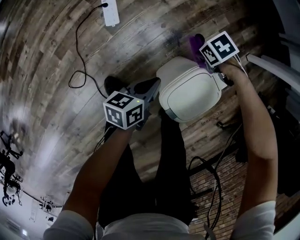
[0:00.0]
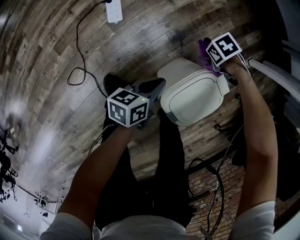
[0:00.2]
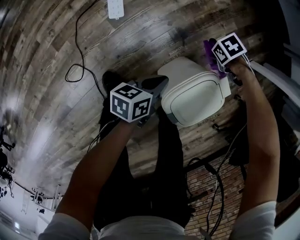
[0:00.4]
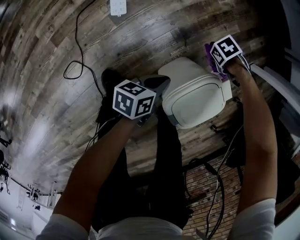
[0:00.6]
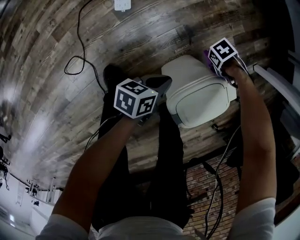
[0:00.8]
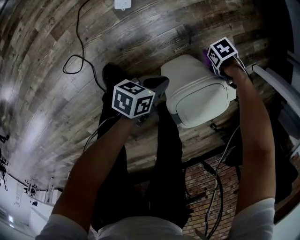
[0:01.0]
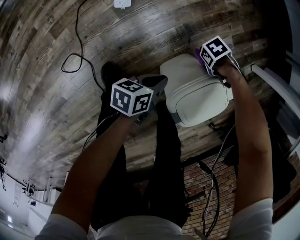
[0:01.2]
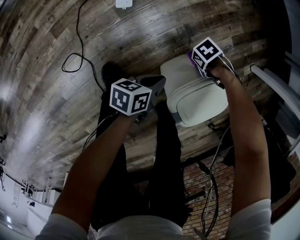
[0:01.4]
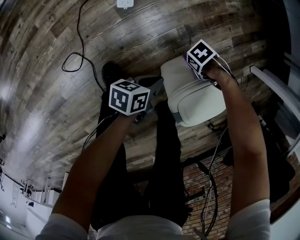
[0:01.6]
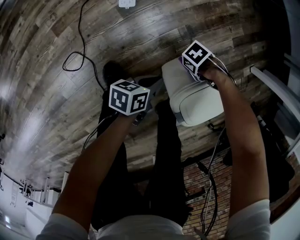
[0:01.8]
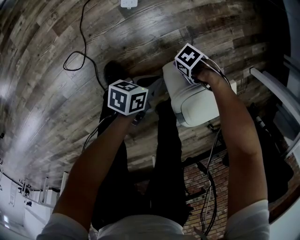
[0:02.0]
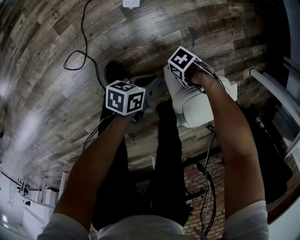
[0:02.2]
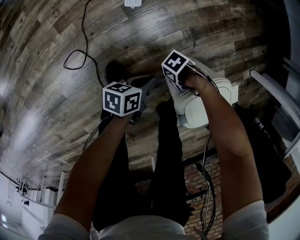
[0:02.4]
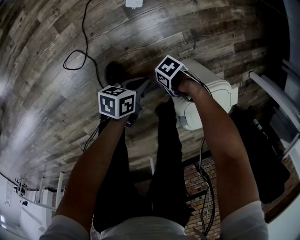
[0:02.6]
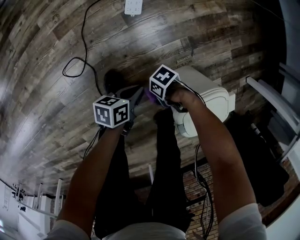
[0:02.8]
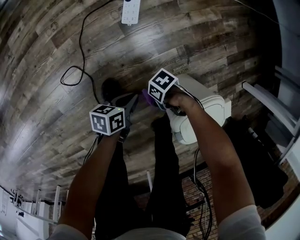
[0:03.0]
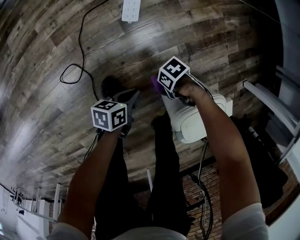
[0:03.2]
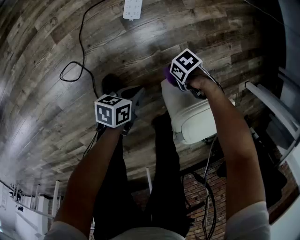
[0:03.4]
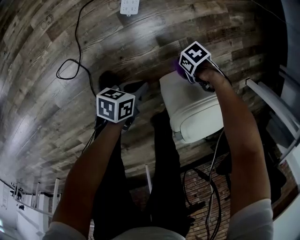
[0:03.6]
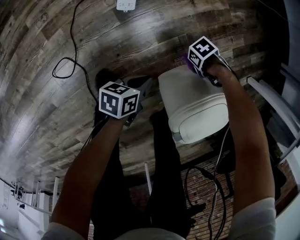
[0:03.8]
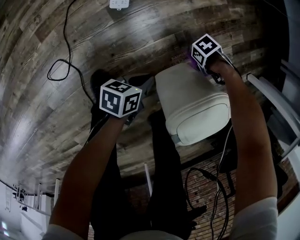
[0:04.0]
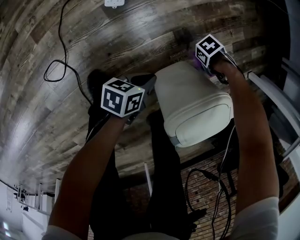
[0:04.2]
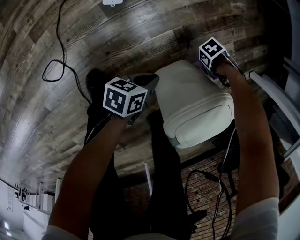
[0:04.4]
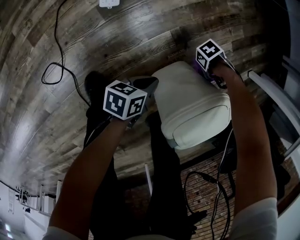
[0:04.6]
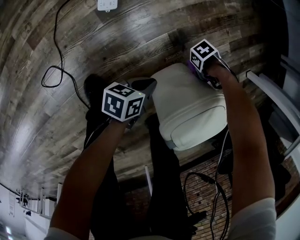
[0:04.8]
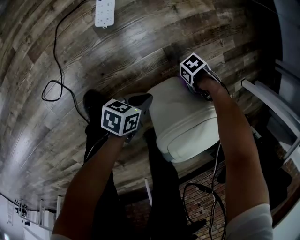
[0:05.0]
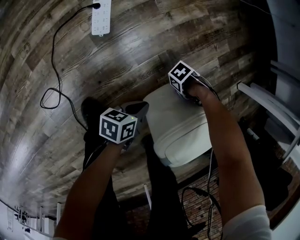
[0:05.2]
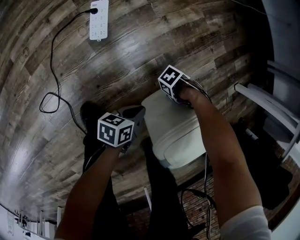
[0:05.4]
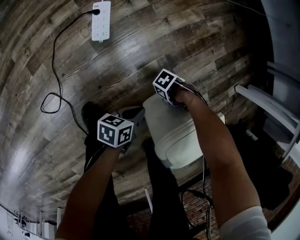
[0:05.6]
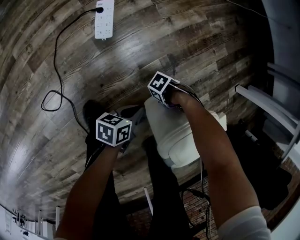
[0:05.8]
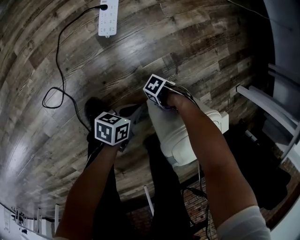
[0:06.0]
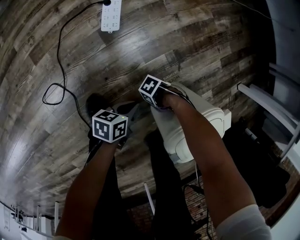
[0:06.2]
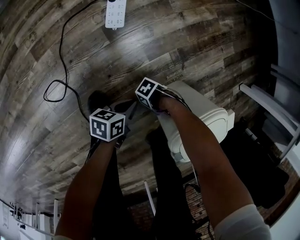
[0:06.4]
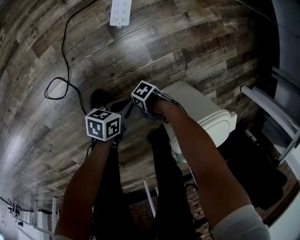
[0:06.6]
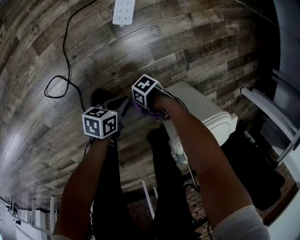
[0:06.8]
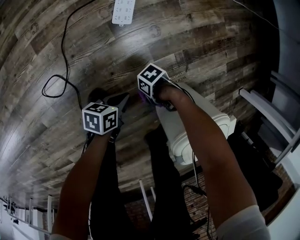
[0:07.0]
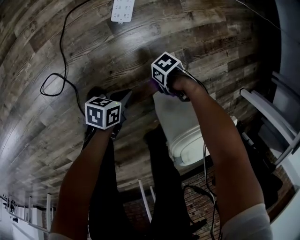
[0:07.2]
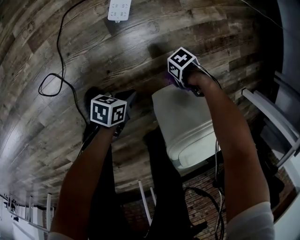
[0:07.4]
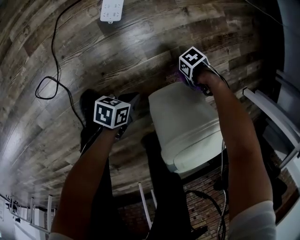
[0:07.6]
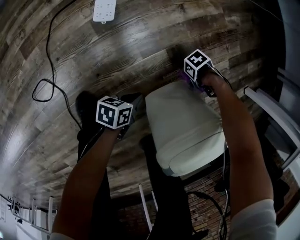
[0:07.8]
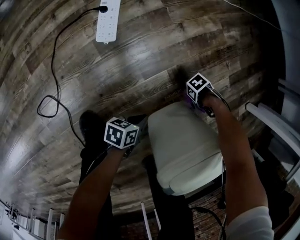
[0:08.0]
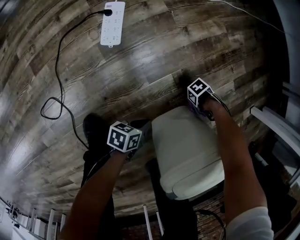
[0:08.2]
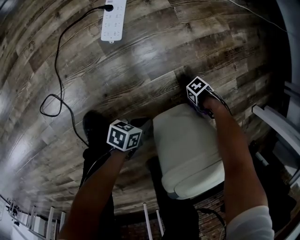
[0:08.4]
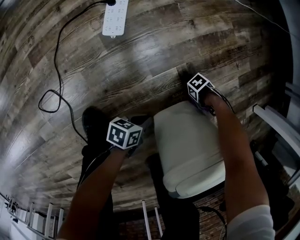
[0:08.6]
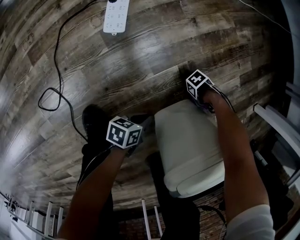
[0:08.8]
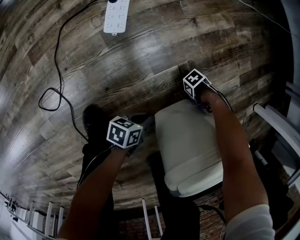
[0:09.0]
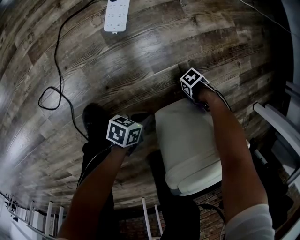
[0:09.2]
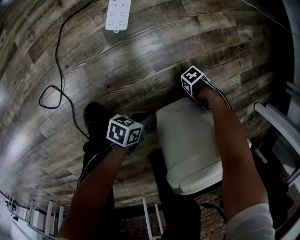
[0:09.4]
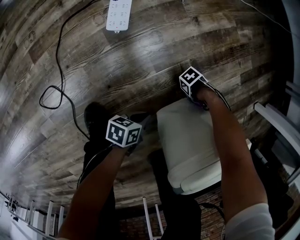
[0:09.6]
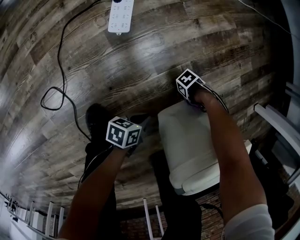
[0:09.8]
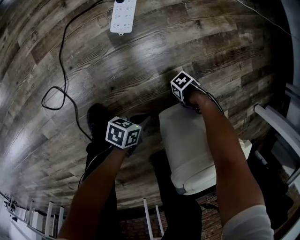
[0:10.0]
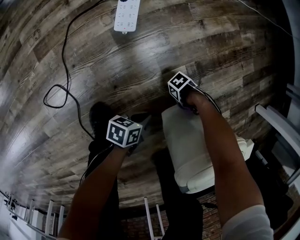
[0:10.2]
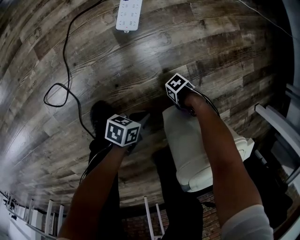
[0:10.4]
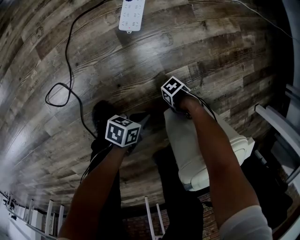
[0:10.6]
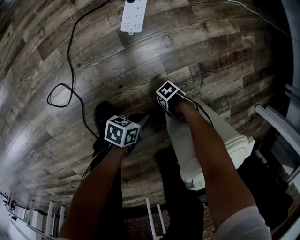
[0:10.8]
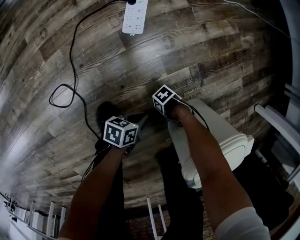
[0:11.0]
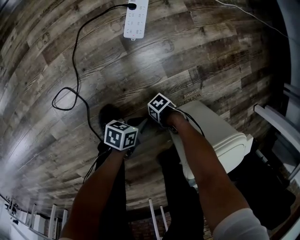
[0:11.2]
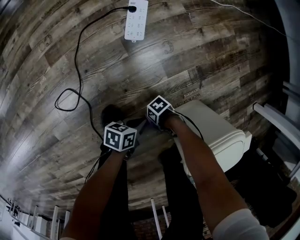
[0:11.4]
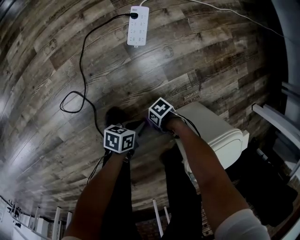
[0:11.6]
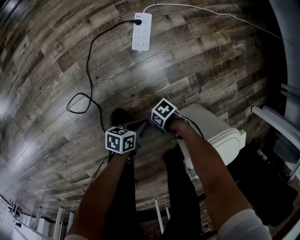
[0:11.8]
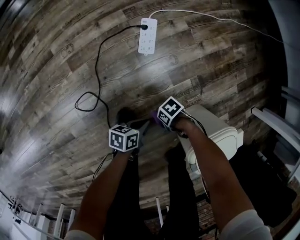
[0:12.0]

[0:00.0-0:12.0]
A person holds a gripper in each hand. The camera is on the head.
0:00.0 to 0:01.6: The left gripper goes some 10 cm downward.
0:01.6 to 0:03.0: The left gripper changes place by about 10 cm.
0:03.0 to 0:04.4: The left gripper ends up about 15 cm from where it was.
0:06.0 to 0:07.6: The left gripper shifts about 10 cm downward.
0:07.6 to 0:09.0: The left gripper changes place by roughly 5 cm.
0:09.0 to 0:10.4: The left gripper changes place by about 5 cm.
0:10.4 to 0:12.0: The left gripper shifts approximately 10 cm upward.

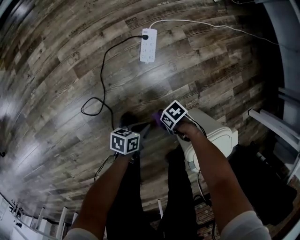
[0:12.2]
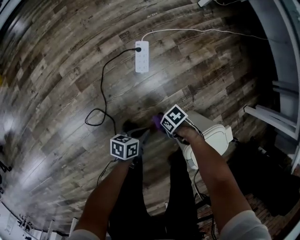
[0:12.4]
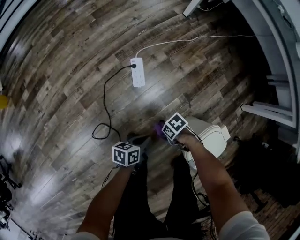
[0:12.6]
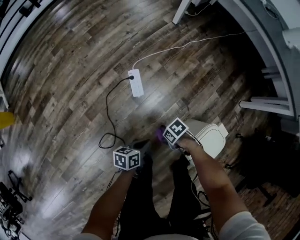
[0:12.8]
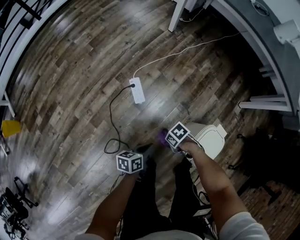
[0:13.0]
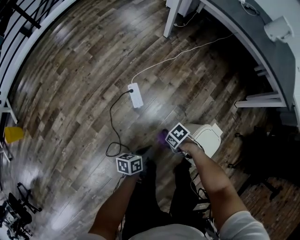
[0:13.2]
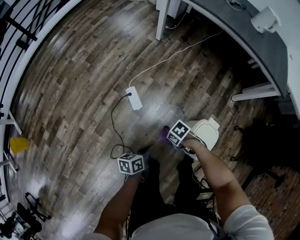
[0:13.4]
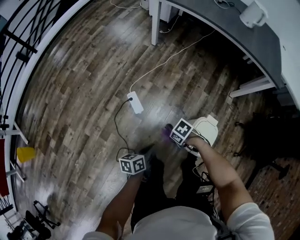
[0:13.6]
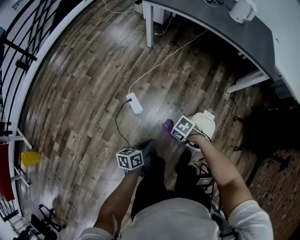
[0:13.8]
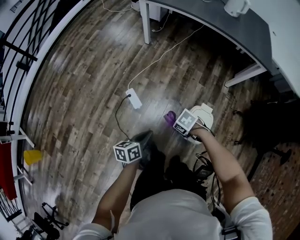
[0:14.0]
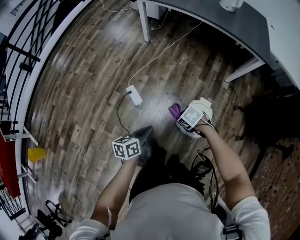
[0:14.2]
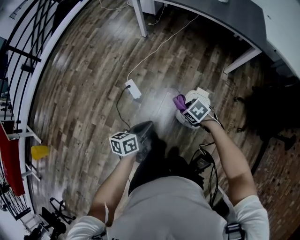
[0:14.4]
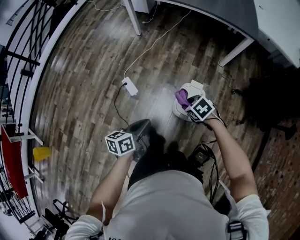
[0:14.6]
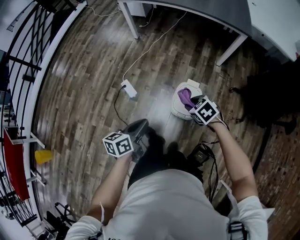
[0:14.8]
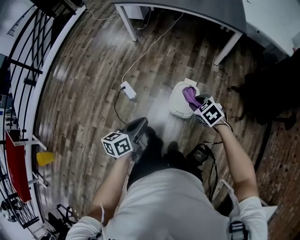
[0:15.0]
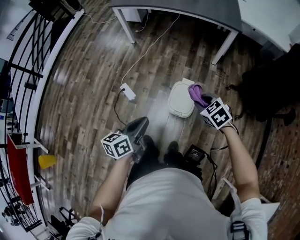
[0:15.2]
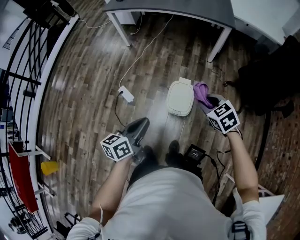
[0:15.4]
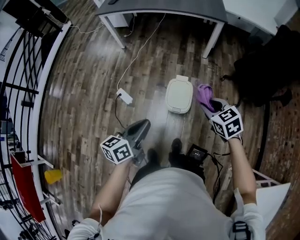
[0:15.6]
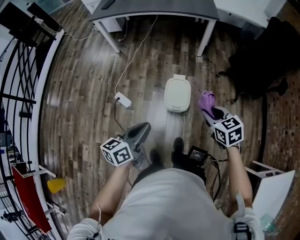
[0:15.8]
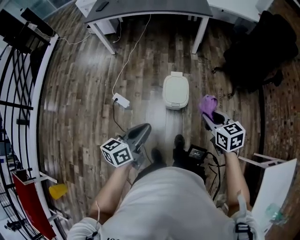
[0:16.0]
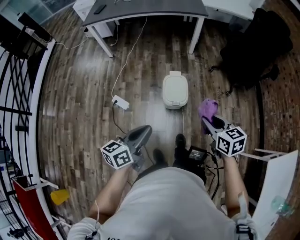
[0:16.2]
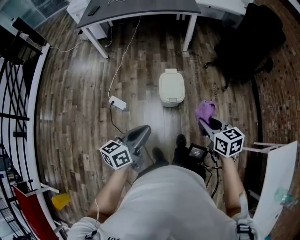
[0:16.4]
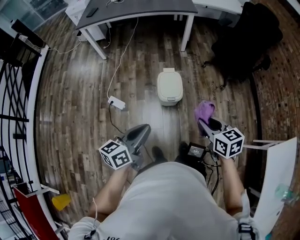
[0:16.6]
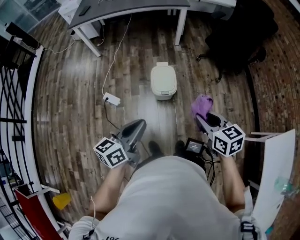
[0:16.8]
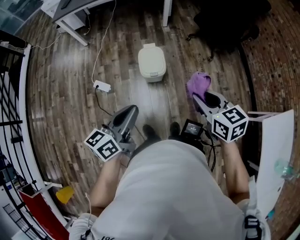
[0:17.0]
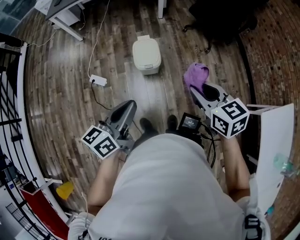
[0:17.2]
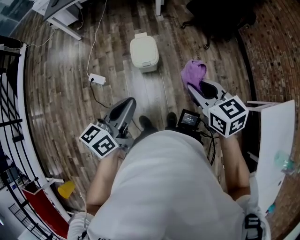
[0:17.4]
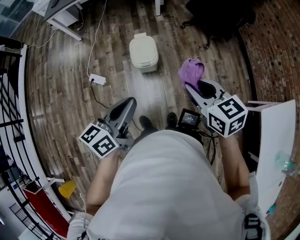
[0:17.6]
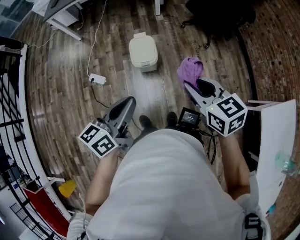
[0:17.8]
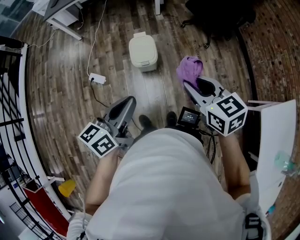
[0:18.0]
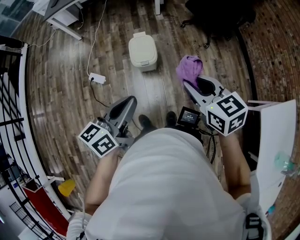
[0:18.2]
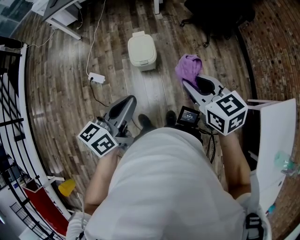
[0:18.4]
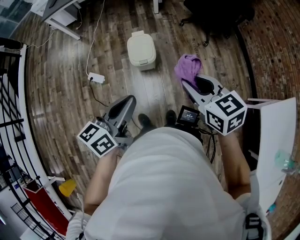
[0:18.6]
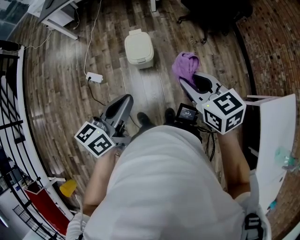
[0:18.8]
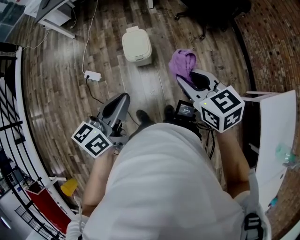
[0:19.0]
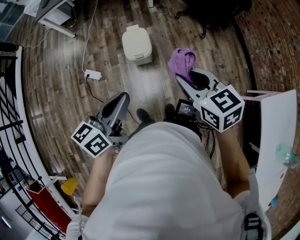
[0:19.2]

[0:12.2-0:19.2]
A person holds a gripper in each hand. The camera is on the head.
0:12.2 to 0:13.6: The left gripper is displaced upward by roughly 35 cm.
0:13.6 to 0:15.0: The left gripper is displaced upward by some 20 cm, and rotates roughly 20 degrees.
0:15.0 to 0:16.4: The left gripper moves approximately 15 cm, and rotates some 30 degrees.
0:16.4 to 0:17.8: The left gripper moves some 15 cm.

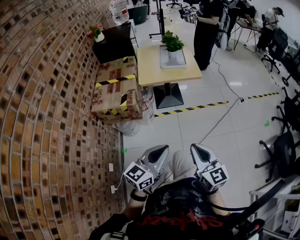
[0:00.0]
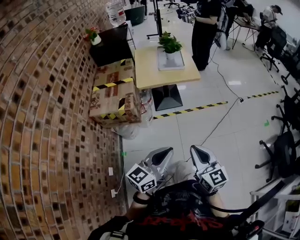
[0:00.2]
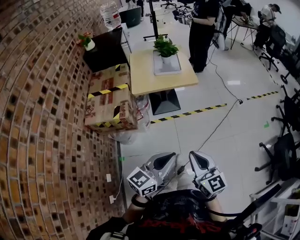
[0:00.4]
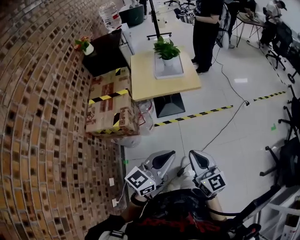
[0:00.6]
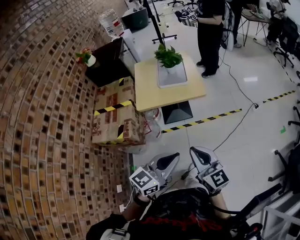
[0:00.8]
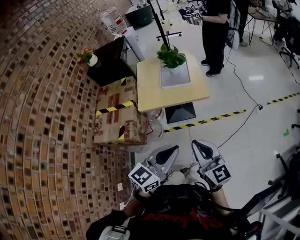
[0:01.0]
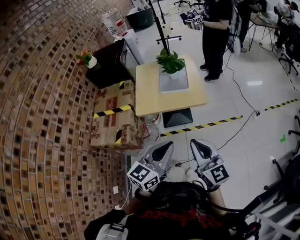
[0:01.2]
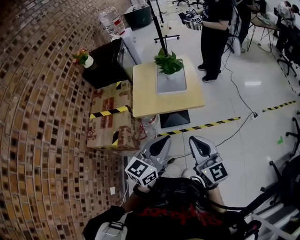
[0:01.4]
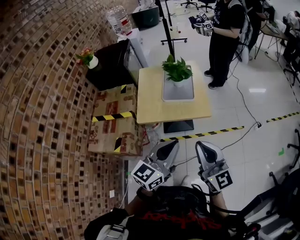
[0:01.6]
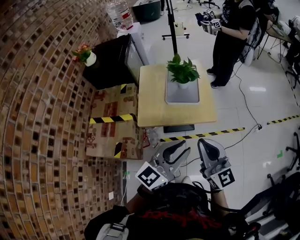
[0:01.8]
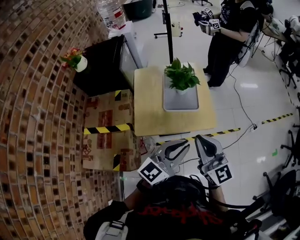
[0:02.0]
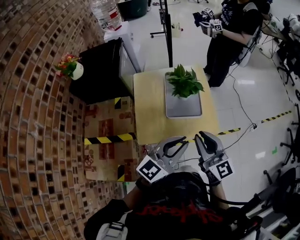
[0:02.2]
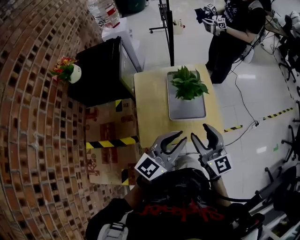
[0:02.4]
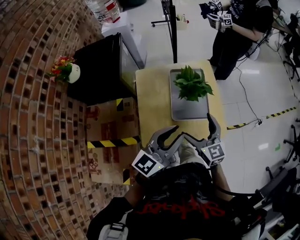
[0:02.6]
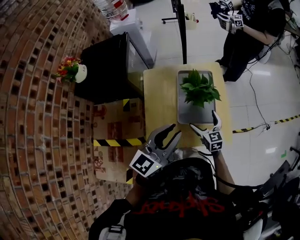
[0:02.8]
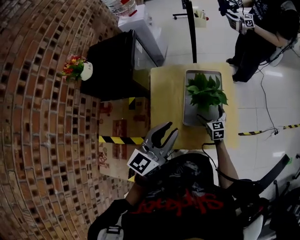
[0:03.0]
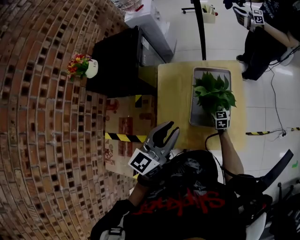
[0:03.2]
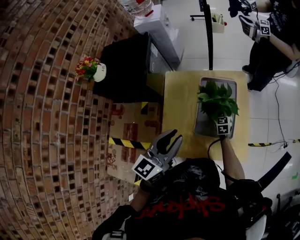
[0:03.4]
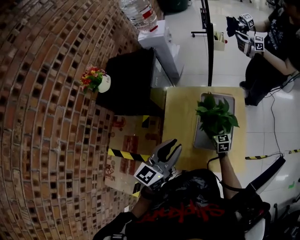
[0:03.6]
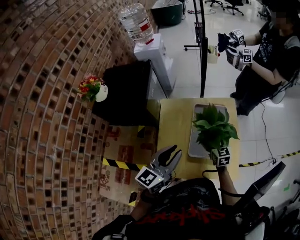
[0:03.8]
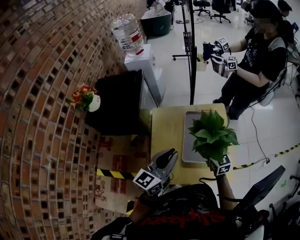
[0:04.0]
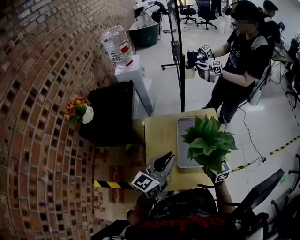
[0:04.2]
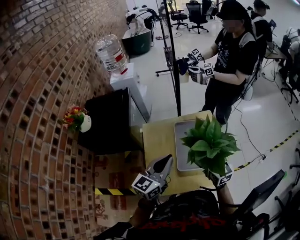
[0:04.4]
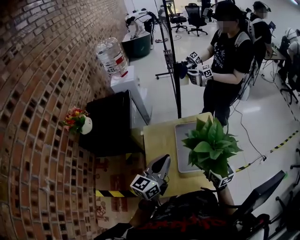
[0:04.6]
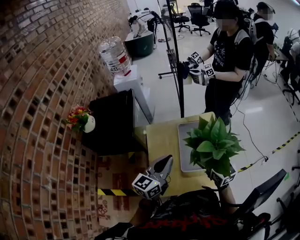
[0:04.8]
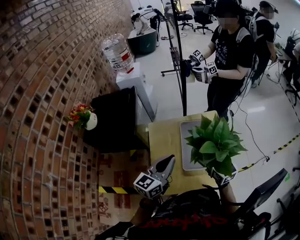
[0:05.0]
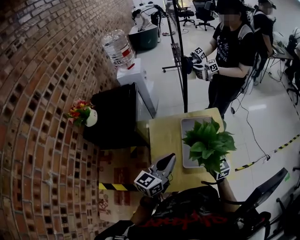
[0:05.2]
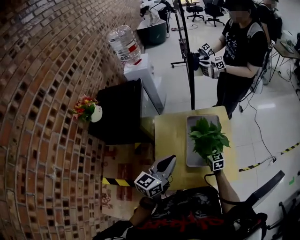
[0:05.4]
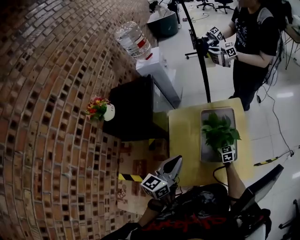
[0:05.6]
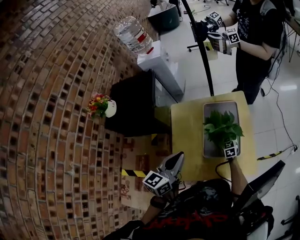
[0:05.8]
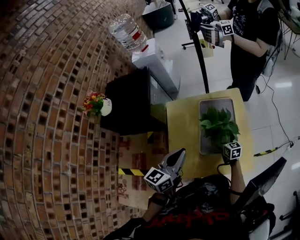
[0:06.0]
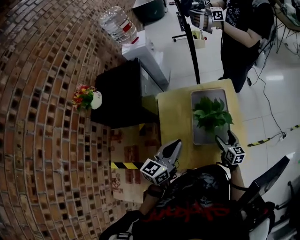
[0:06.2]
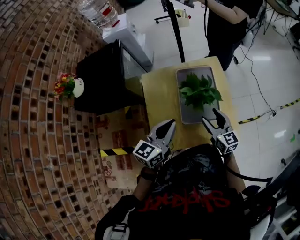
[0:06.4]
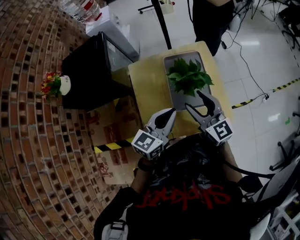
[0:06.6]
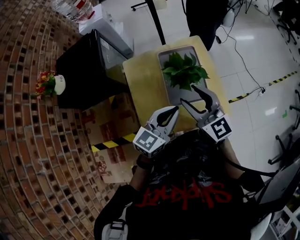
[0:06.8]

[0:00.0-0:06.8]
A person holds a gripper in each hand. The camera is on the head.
0:00.0 to 0:01.4: The two grippers go approximately 35 cm forward.
0:01.4 to 0:02.8: The pair of grippers is taken forward and to the left, about 50 cm. The left gripper opens its fingers. The right gripper heads downward, covering roughly 25 cm, angles its fingers downward, by roughly 30 degrees, and opens its fingers.
0:02.8 to 0:04.0: The right gripper is displaced upward and forward by some 15 cm, while the left gripper shifts approximately 10 cm forward and to the left.
0:04.0 to 0:05.4: The right gripper travels downward by some 15 cm.
0:05.4 to 0:06.8: The left gripper moves to the right, about 10 cm. Meanwhile the right gripper moves upward and backward, some 25 cm, rotates some 20 degrees, and closes.
